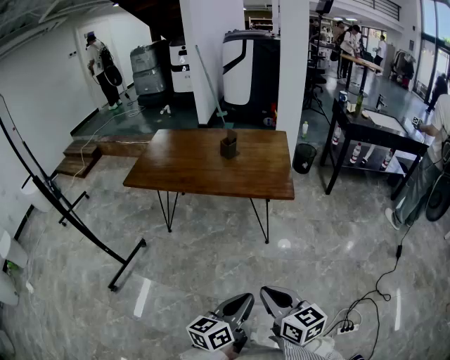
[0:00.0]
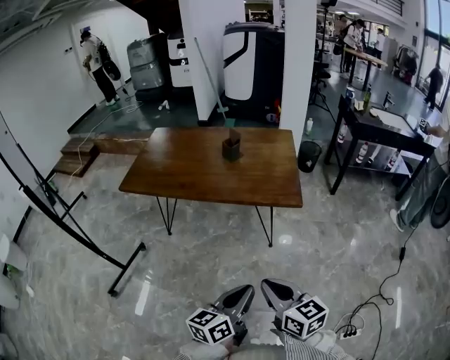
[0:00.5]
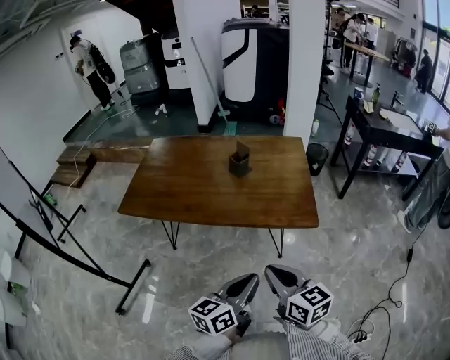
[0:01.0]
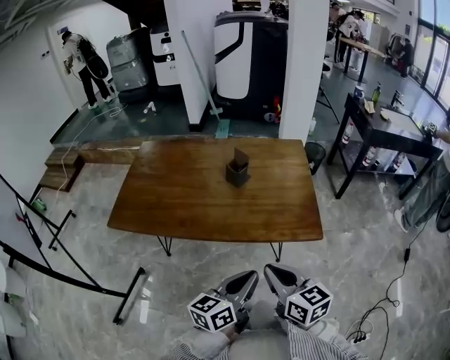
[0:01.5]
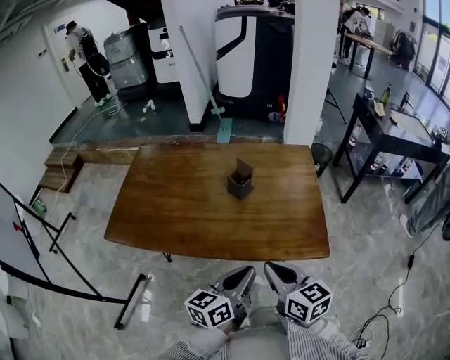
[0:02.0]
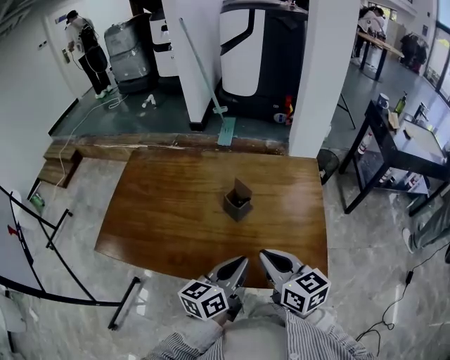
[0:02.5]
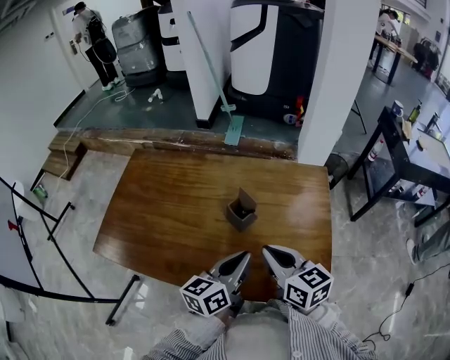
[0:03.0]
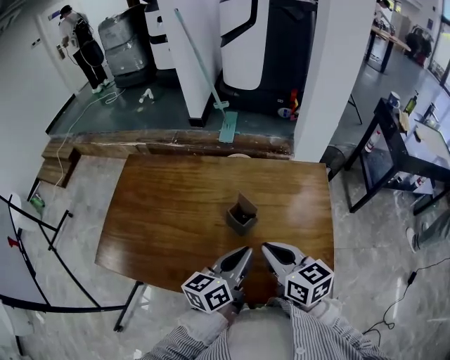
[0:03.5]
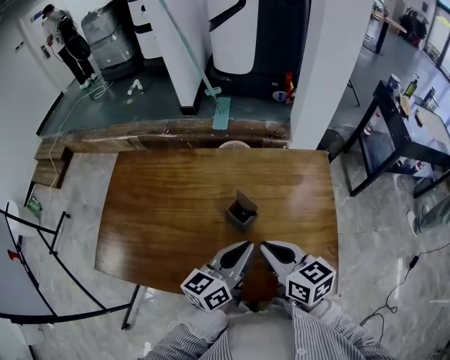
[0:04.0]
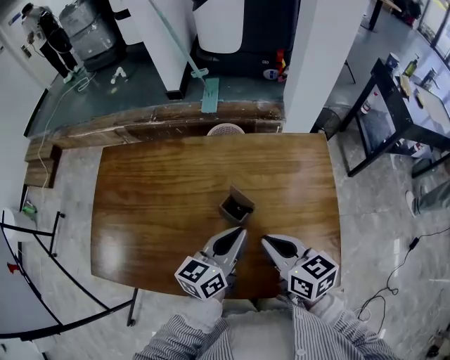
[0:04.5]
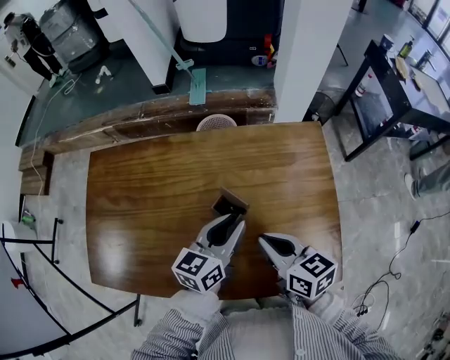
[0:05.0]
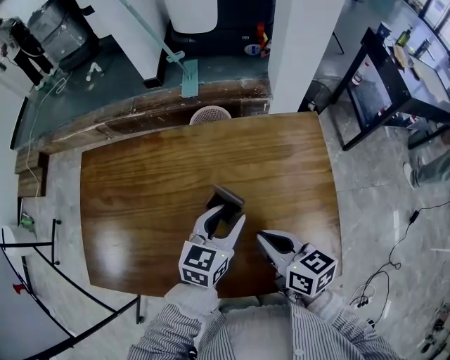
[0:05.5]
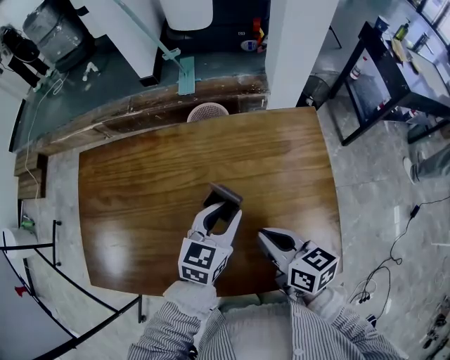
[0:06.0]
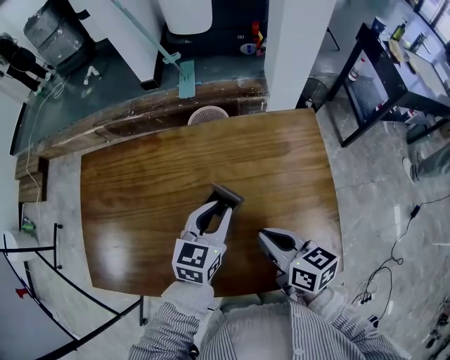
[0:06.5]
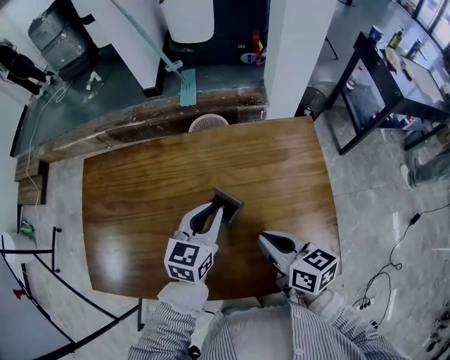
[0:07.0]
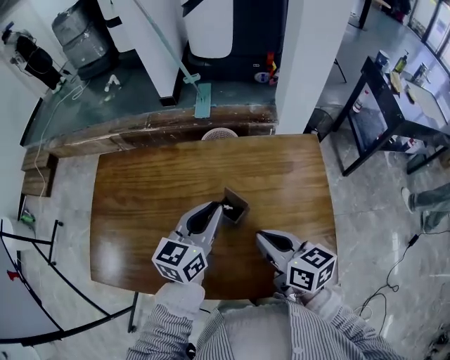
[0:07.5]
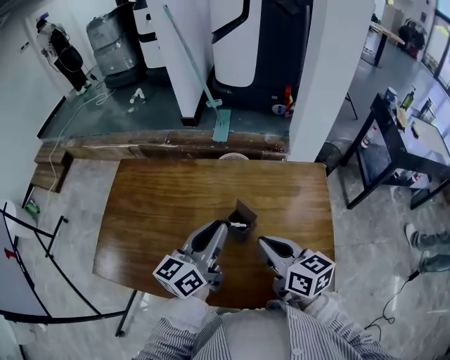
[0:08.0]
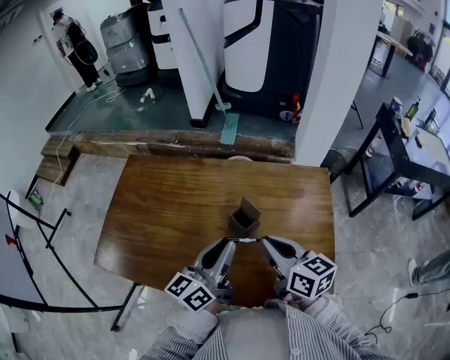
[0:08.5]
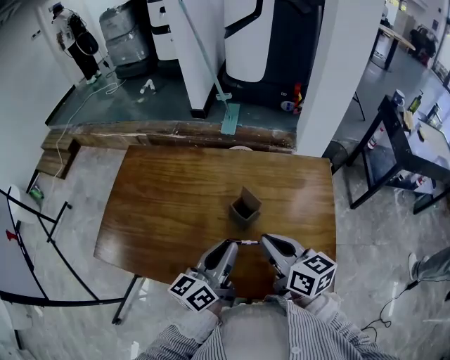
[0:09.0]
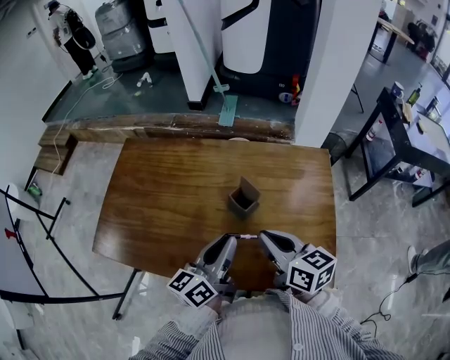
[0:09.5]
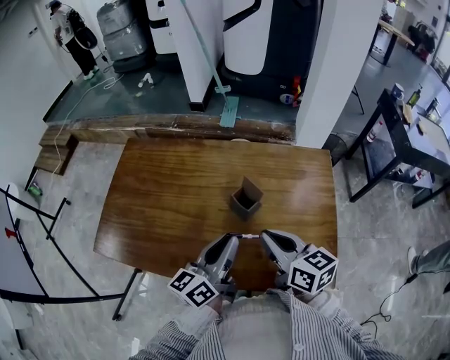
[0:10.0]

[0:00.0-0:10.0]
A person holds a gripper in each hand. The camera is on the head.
0:00.0 to 0:02.0: Both grippers are carried forward, roughly 50 cm.
0:02.0 to 0:04.0: The grippers both shift forward by about 25 cm.
0:04.0 to 0:06.0: The left gripper moves forward and downward, approximately 15 cm, rotates some 40 degrees, and opens. Meanwhile the right gripper heads downward, covering some 5 cm.
0:06.0 to 0:08.0: The right gripper heads upward, covering approximately 10 cm; the left gripper goes approximately 15 cm upward and to the left, and turns by some 40 degrees.
0:08.0 to 0:10.0: The left gripper moves backward, roughly 10 cm.

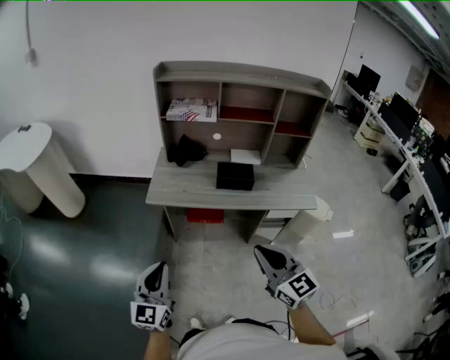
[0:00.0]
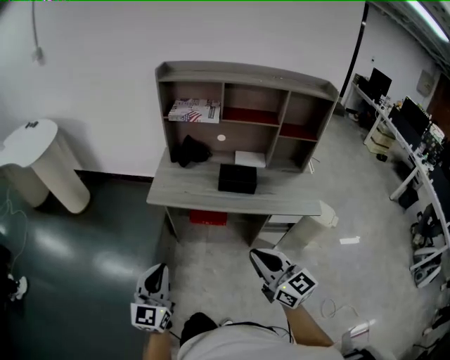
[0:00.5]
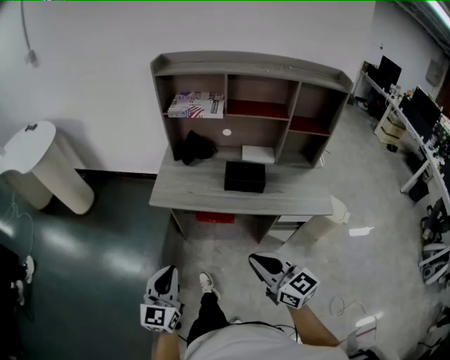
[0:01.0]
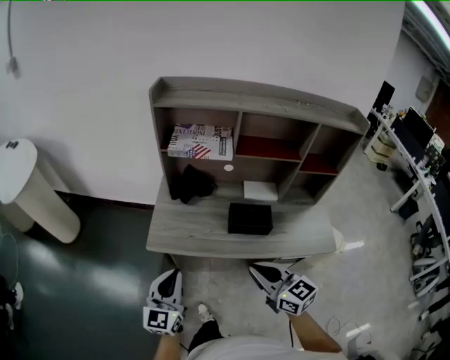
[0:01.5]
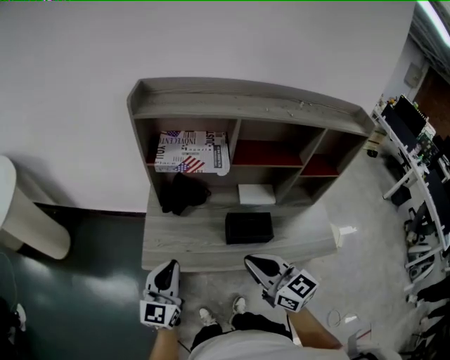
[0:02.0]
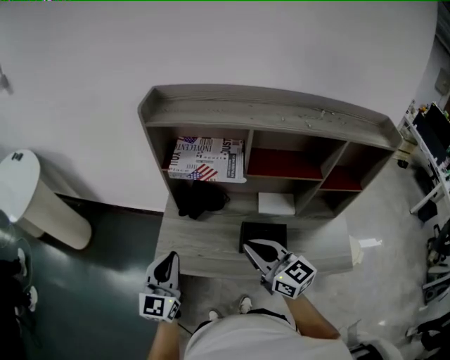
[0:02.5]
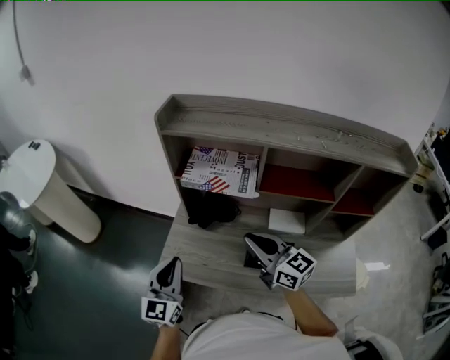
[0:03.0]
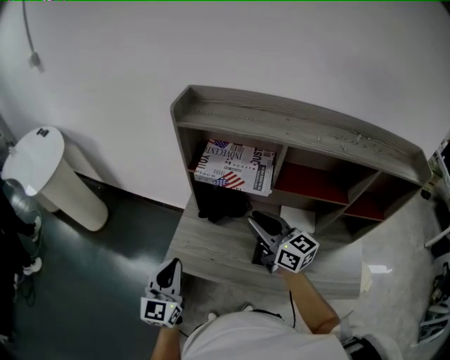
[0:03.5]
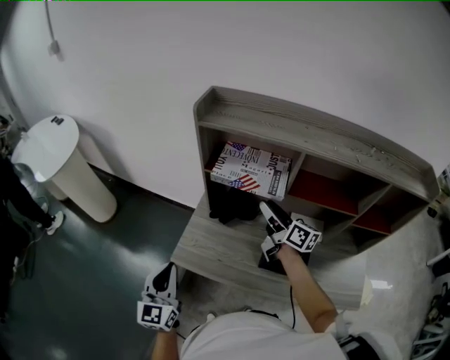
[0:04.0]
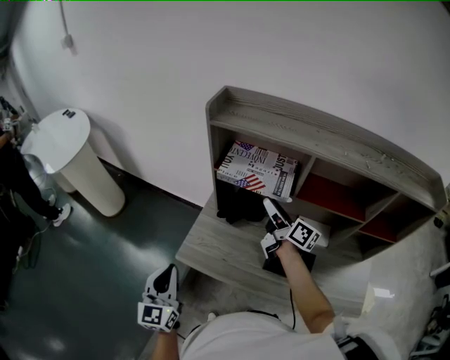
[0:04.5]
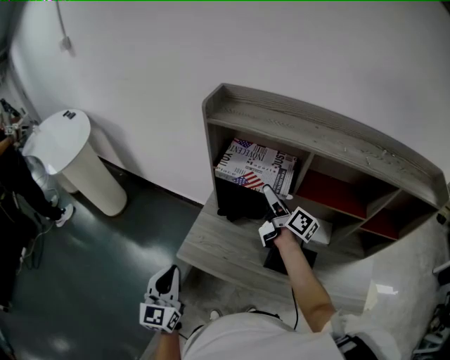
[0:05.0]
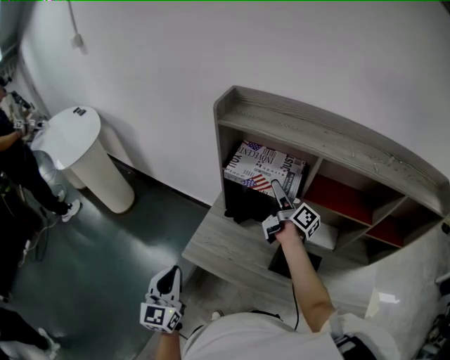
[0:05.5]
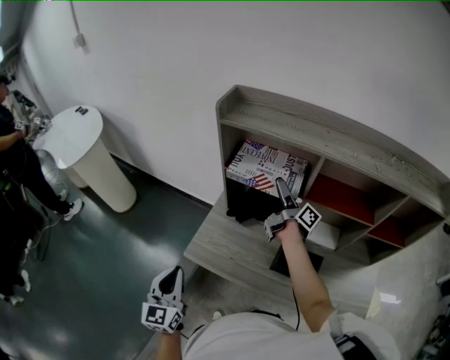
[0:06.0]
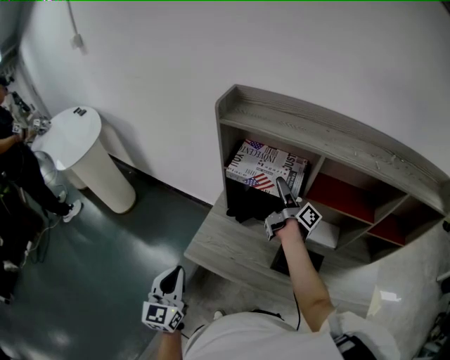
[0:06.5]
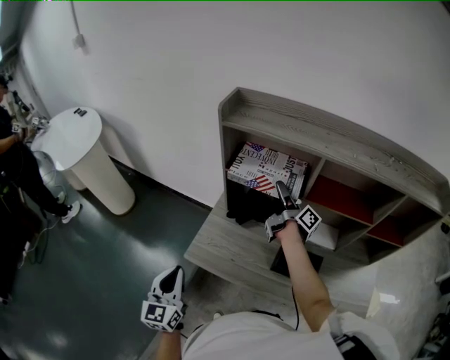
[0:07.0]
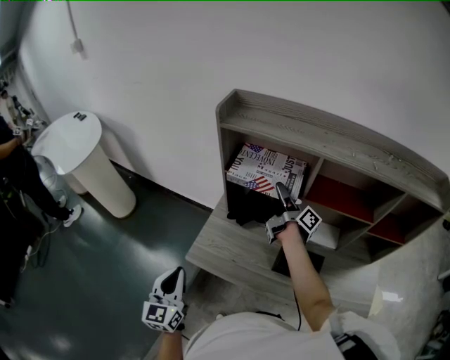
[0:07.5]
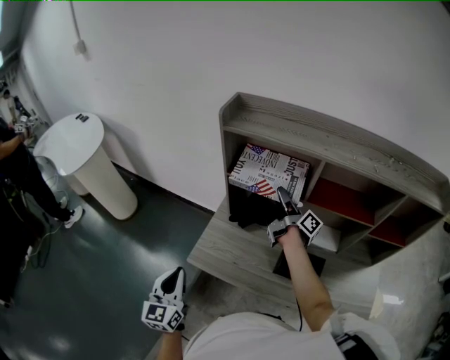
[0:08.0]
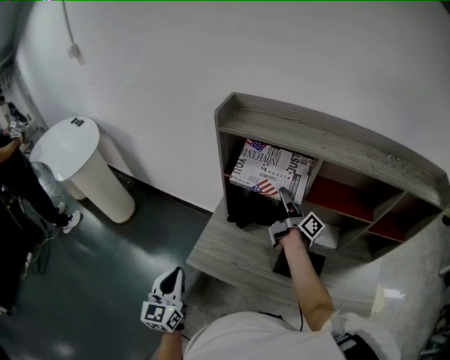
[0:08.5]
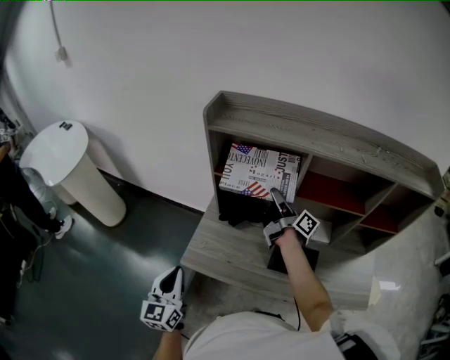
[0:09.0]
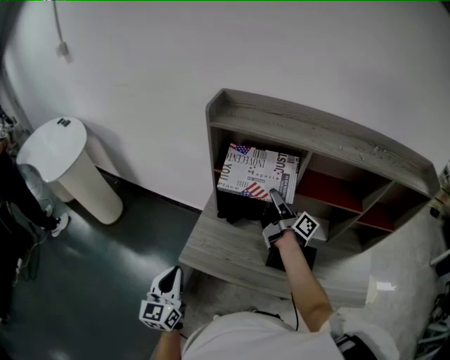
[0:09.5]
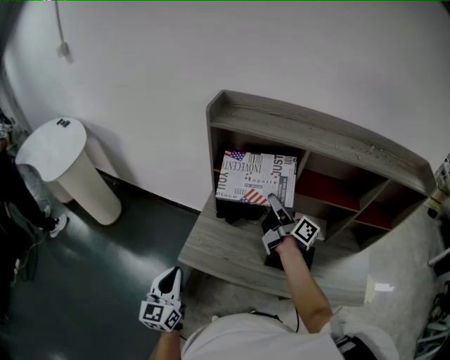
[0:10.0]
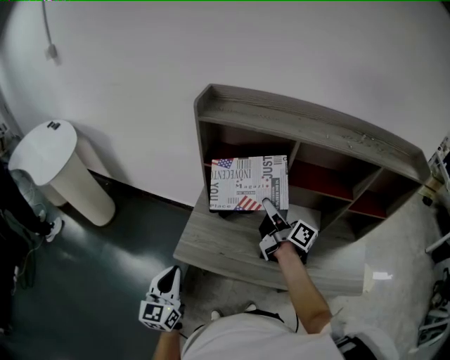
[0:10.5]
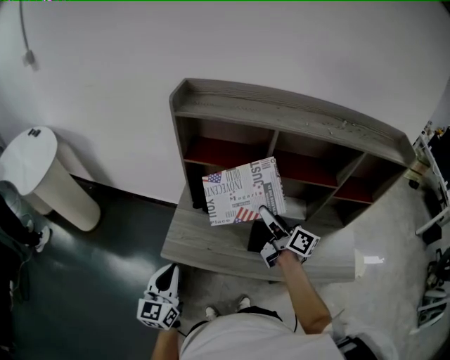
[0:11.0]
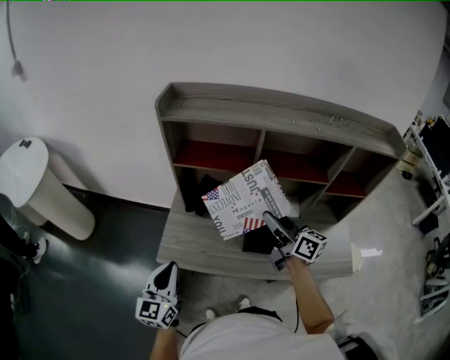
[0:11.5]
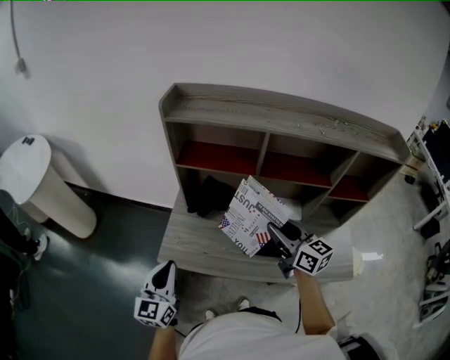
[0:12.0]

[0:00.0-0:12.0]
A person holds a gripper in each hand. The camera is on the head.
0:00.0 to 0:02.0: The two grippers go roughly 35 cm forward.
0:02.0 to 0:04.0: The left gripper goes approximately 5 cm to the left, and rotates approximately 30 degrees; the right gripper shifts some 30 cm forward, turns by approximately 40 degrees, and opens up.
0:04.0 to 0:06.0: The right gripper is displaced forward by approximately 10 cm, swivels some 40 degrees, and opens its fingers.
0:06.0 to 0:08.0: The right gripper closes.
0:08.0 to 0:10.0: The right gripper is displaced backward by approximately 10 cm.
0:10.0 to 0:12.0: The left gripper is displaced to the right by approximately 5 cm, while the right gripper moves backward and to the right, about 15 cm, and twists approximately 50 degrees counterclockwise, seen from behind.

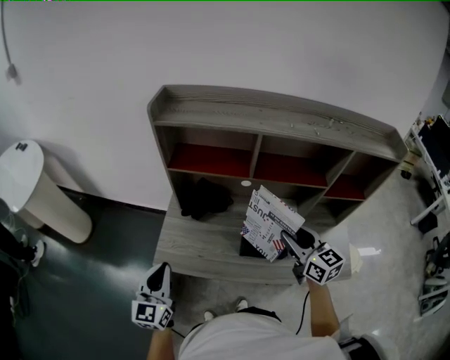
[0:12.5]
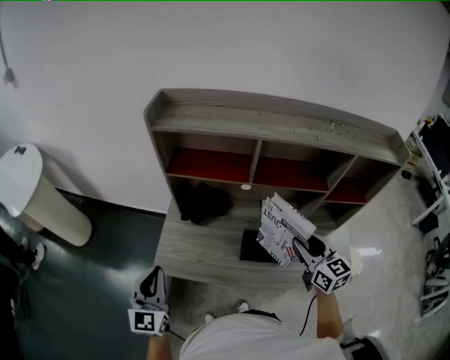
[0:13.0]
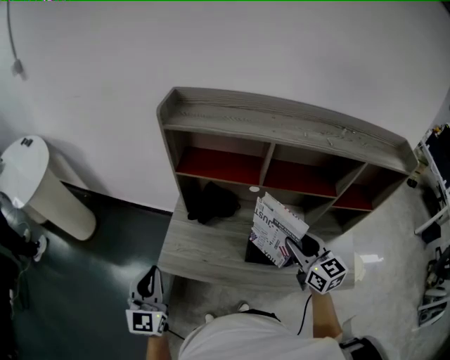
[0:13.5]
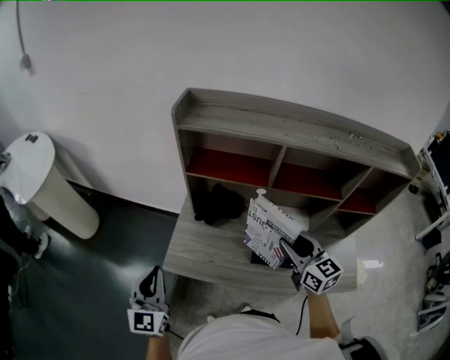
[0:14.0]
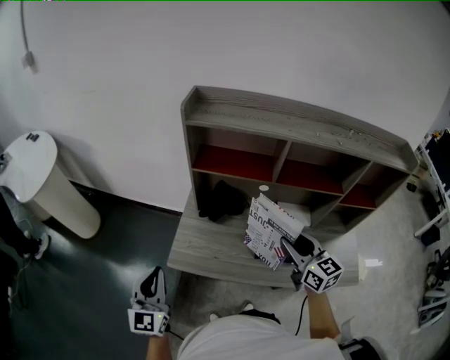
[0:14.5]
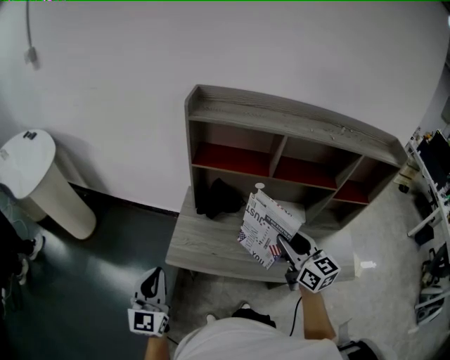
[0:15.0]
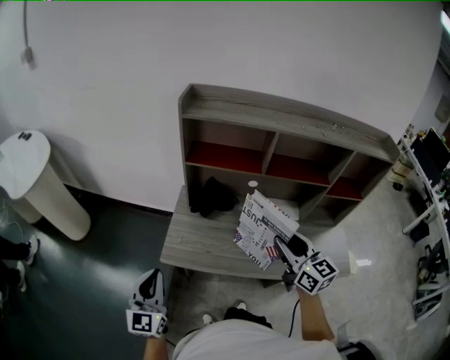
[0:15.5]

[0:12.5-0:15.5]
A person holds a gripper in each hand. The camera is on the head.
0:12.5 to 0:14.0: The grippers both shift to the left by approximately 5 cm.
0:14.0 to 0:15.5: The two grippers go about 5 cm backward.

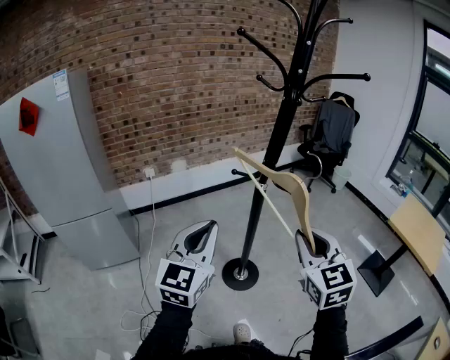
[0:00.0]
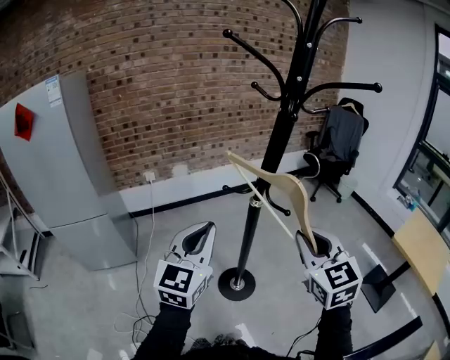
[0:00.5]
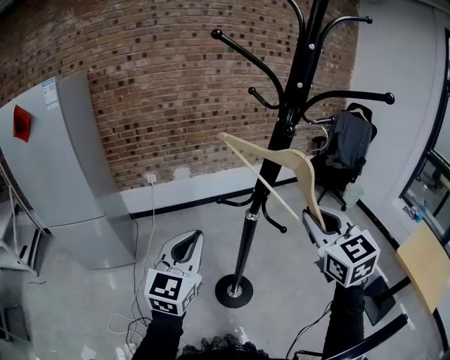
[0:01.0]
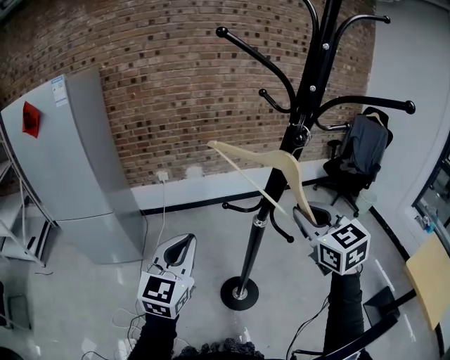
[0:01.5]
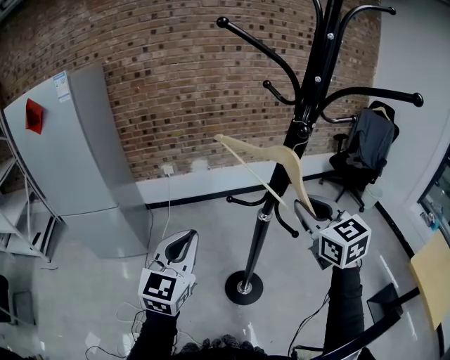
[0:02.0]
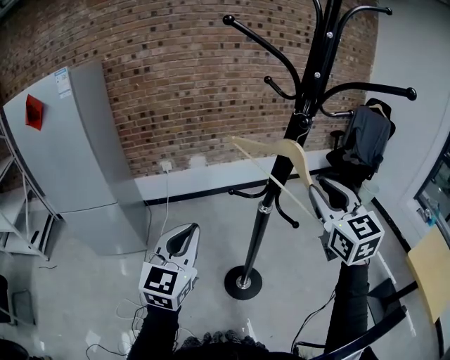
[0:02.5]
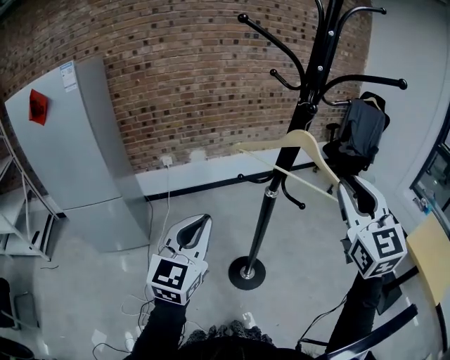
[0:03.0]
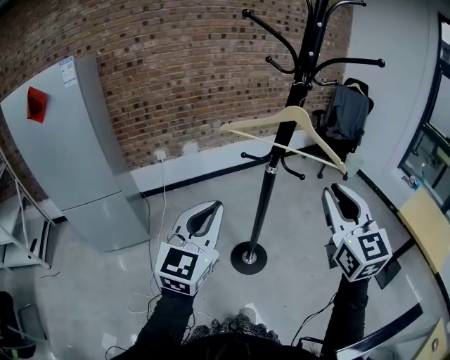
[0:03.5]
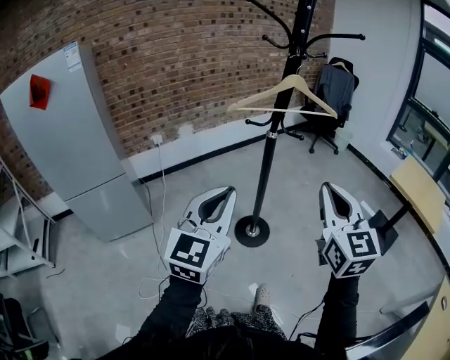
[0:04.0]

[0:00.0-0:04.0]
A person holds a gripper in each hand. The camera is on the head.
0:00.0 to 0:02.0: The right gripper heads forward, covering about 25 cm, and turns by some 20 degrees. Meanwhile the left gripper goes roughly 10 cm forward.
0:02.0 to 0:04.0: The left gripper moves approximately 25 cm, and changes its angle by some 20 degrees, while the right gripper travels upward and back again, roughly 10 cm each way, and swivels about 30 degrees.
